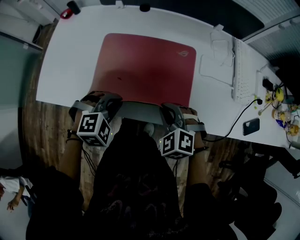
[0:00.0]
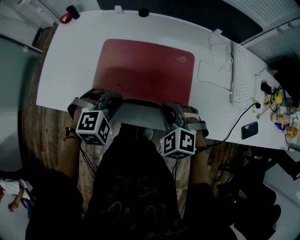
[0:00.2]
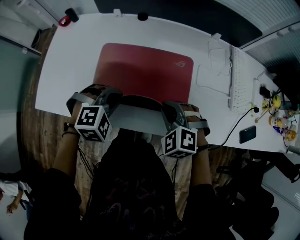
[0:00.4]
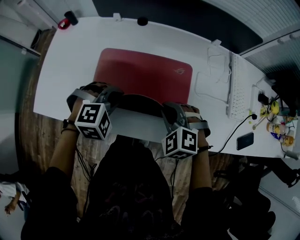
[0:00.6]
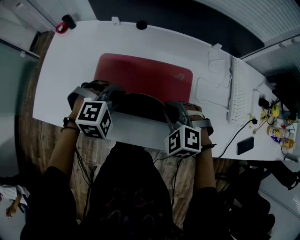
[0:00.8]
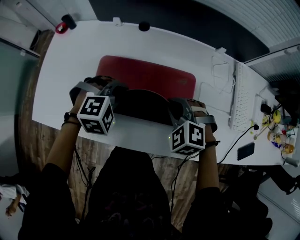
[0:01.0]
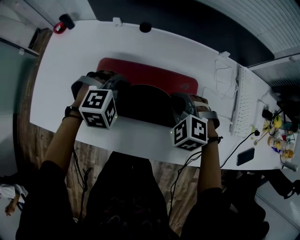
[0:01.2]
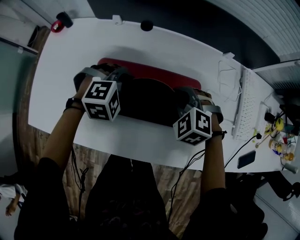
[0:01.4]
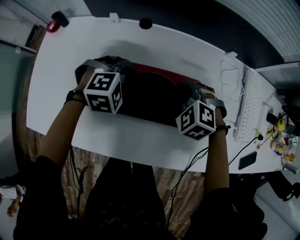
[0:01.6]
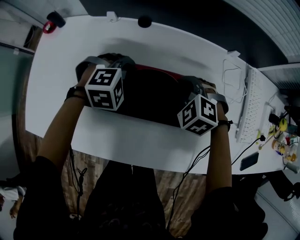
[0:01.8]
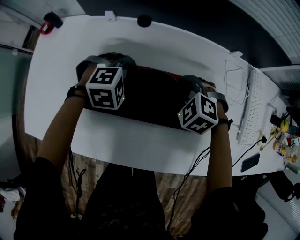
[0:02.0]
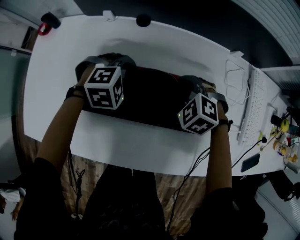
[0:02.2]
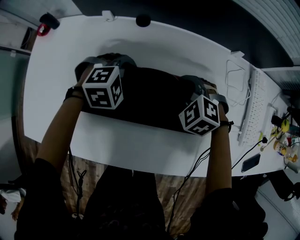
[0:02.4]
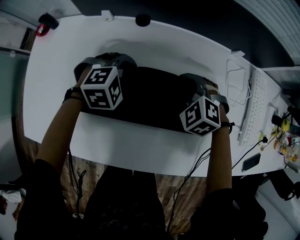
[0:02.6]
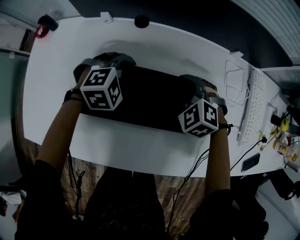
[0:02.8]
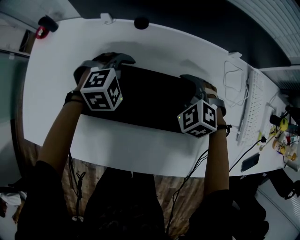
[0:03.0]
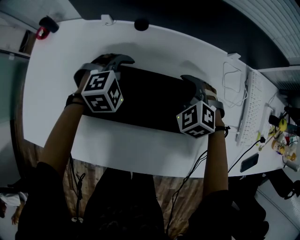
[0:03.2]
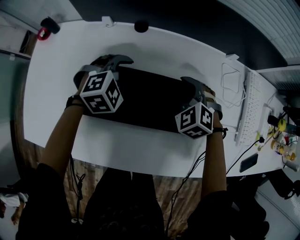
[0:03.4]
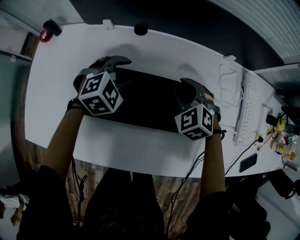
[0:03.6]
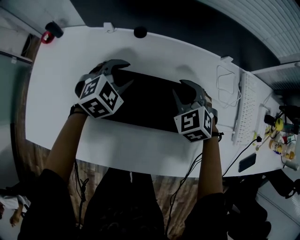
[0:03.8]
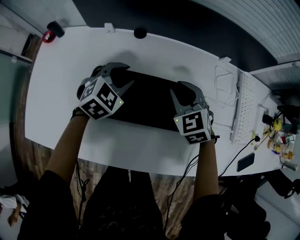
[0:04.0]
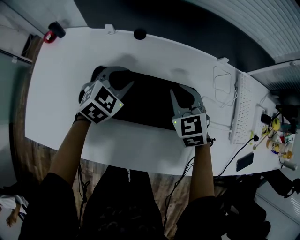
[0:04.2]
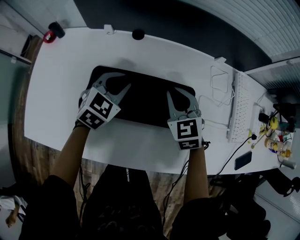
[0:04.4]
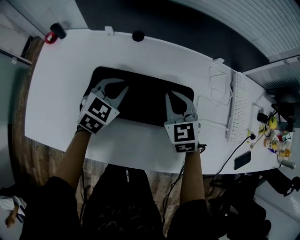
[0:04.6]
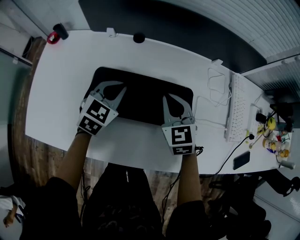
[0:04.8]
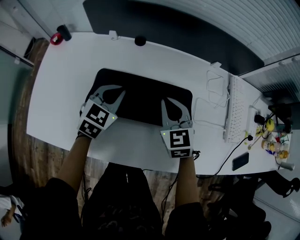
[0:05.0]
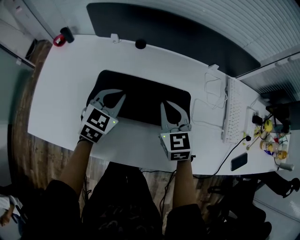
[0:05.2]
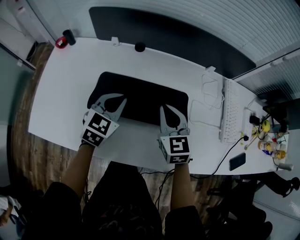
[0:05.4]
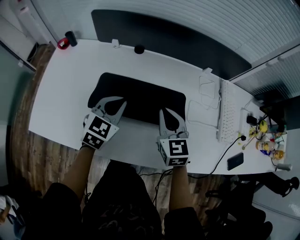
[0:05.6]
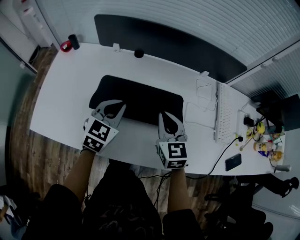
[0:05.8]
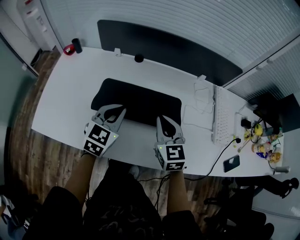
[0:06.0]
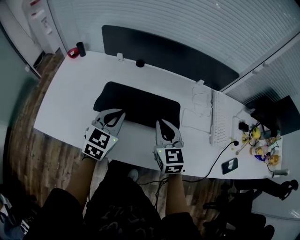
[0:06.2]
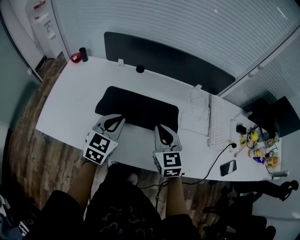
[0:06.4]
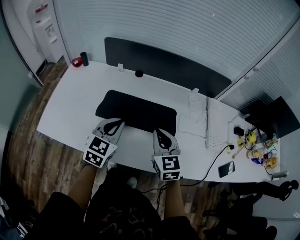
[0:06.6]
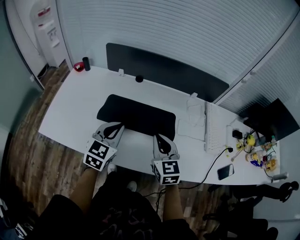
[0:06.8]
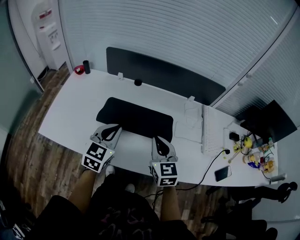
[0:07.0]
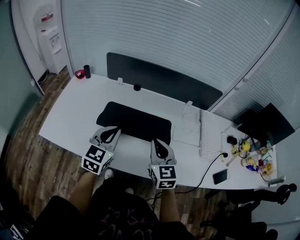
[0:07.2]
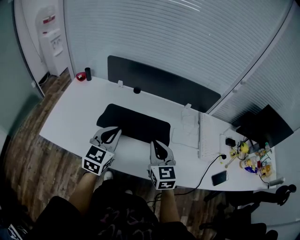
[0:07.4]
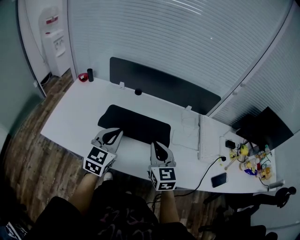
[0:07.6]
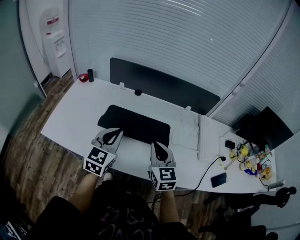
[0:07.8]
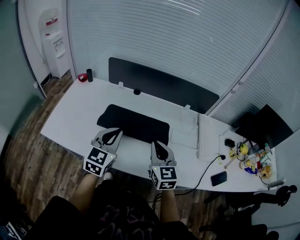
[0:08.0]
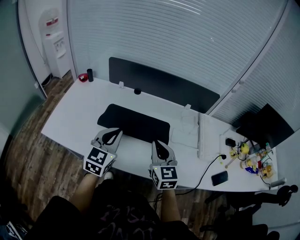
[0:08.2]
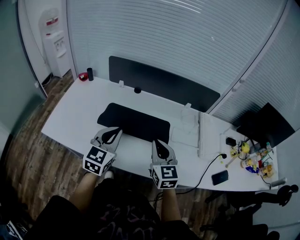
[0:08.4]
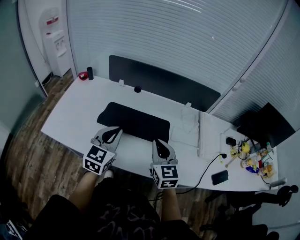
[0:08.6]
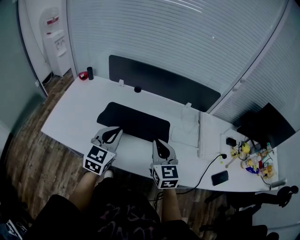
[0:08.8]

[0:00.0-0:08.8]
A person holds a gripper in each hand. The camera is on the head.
0:00.0 to 0:01.4: The grippers both shift forward by some 25 cm.
0:01.4 to 0:03.0: Both grippers travel together forward, about 10 cm. The left gripper opens its fingers.
0:03.0 to 0:04.4: The two grippers go roughly 10 cm upward. The right gripper turns by roughly 40 degrees, while the left gripper rotates some 40 degrees.
0:04.4 to 0:05.8: Both grippers travel together backward and upward, approximately 15 cm.
0:05.8 to 0:07.4: Both grippers travel together backward and upward, about 15 cm.
0:07.4 to 0:08.8: There are only small adjustments of the grippers.

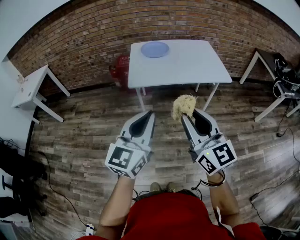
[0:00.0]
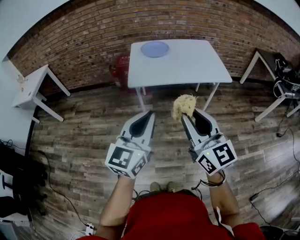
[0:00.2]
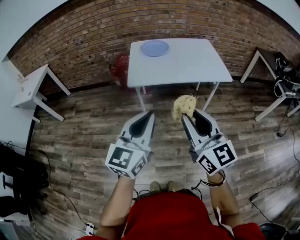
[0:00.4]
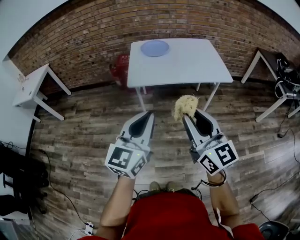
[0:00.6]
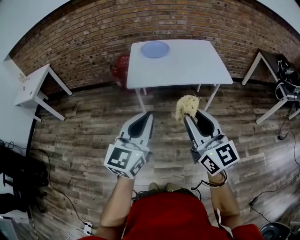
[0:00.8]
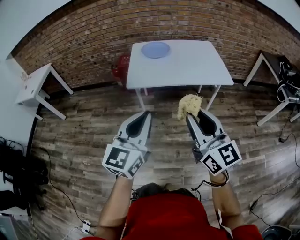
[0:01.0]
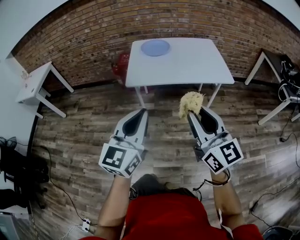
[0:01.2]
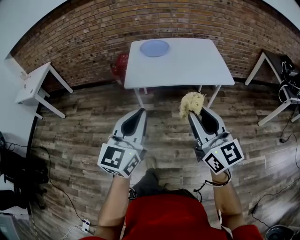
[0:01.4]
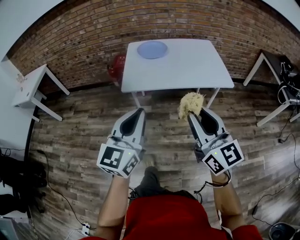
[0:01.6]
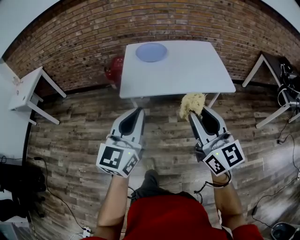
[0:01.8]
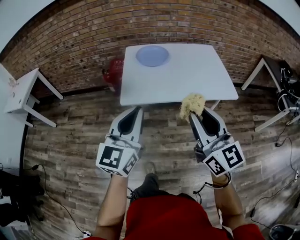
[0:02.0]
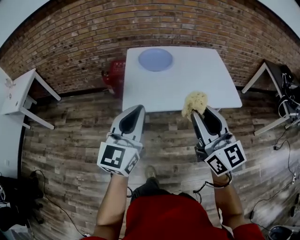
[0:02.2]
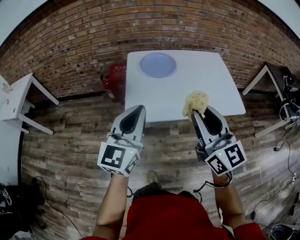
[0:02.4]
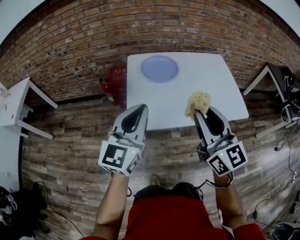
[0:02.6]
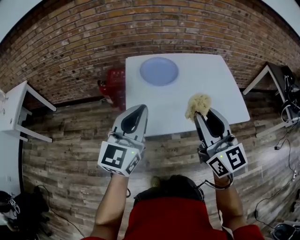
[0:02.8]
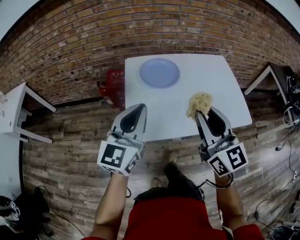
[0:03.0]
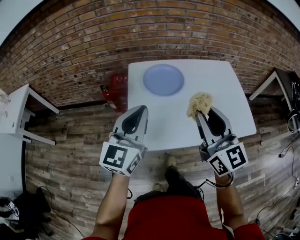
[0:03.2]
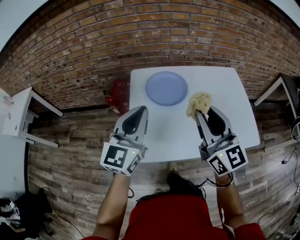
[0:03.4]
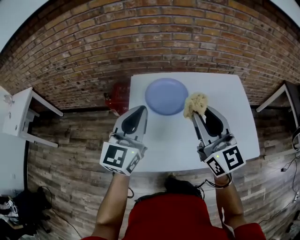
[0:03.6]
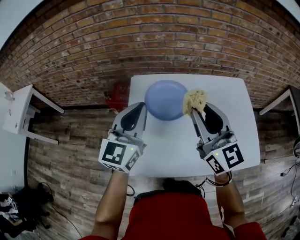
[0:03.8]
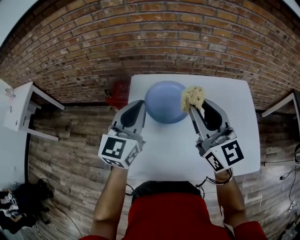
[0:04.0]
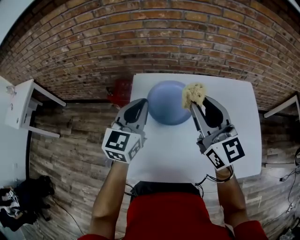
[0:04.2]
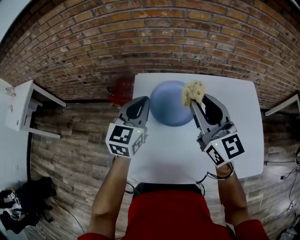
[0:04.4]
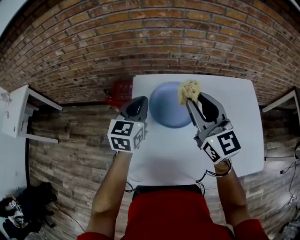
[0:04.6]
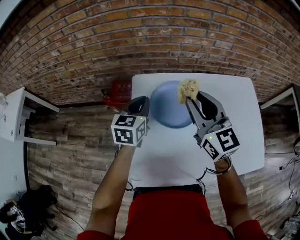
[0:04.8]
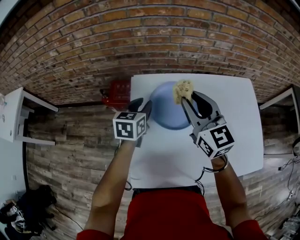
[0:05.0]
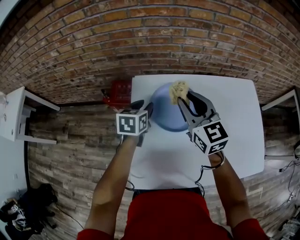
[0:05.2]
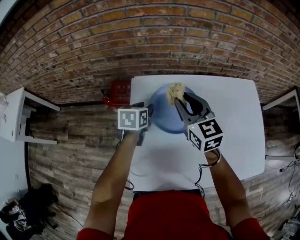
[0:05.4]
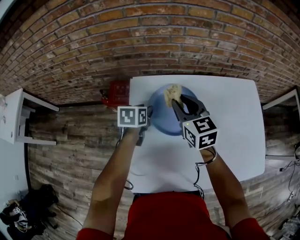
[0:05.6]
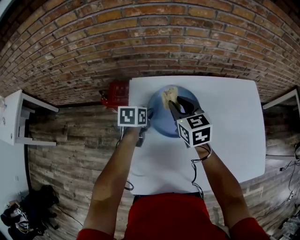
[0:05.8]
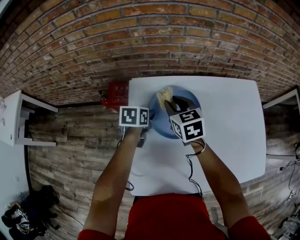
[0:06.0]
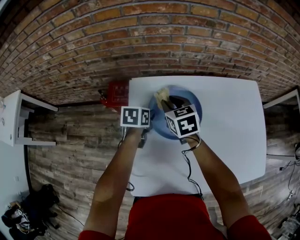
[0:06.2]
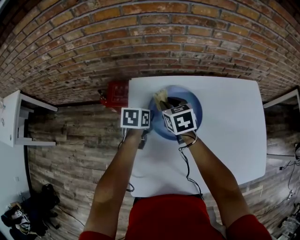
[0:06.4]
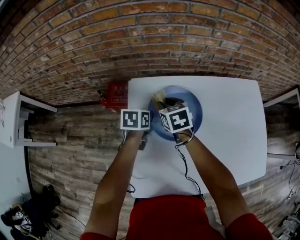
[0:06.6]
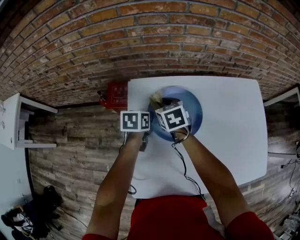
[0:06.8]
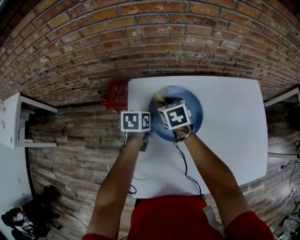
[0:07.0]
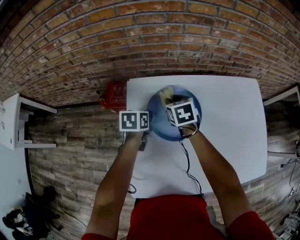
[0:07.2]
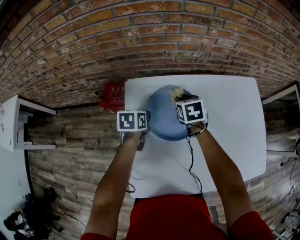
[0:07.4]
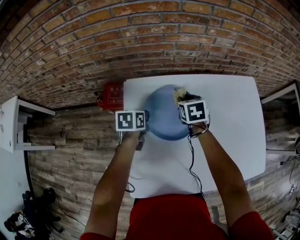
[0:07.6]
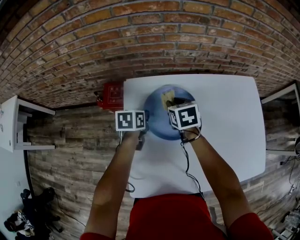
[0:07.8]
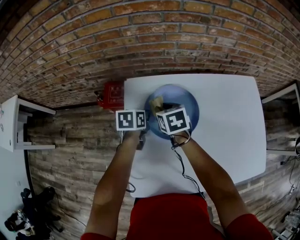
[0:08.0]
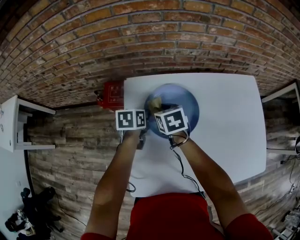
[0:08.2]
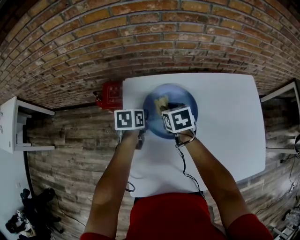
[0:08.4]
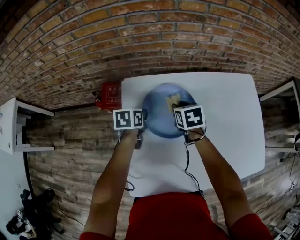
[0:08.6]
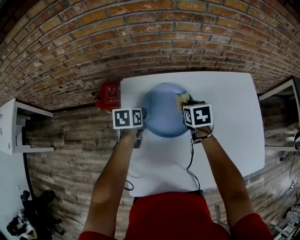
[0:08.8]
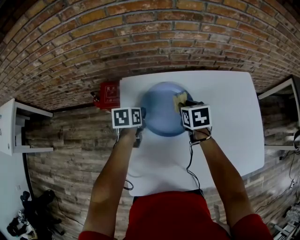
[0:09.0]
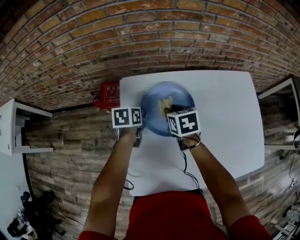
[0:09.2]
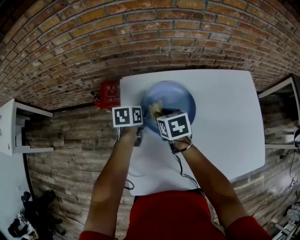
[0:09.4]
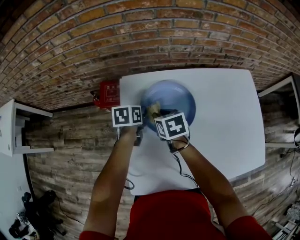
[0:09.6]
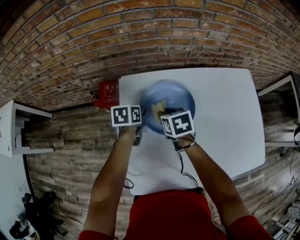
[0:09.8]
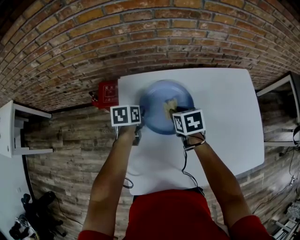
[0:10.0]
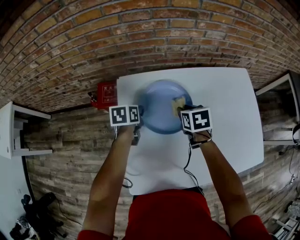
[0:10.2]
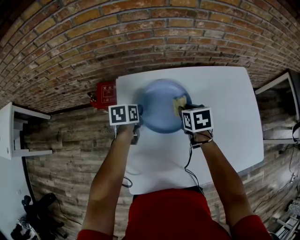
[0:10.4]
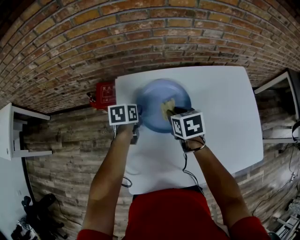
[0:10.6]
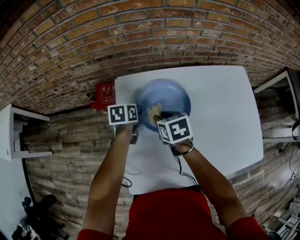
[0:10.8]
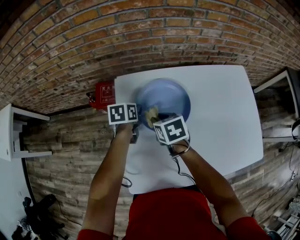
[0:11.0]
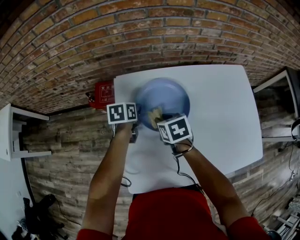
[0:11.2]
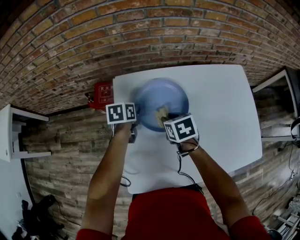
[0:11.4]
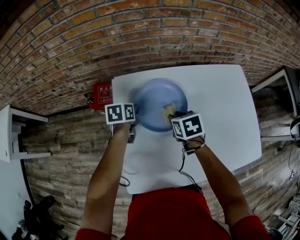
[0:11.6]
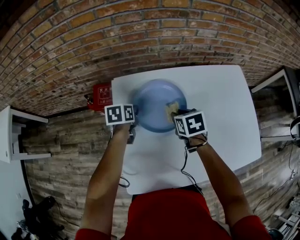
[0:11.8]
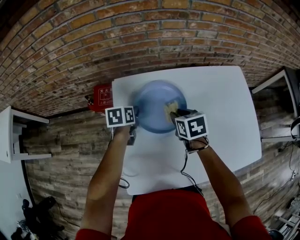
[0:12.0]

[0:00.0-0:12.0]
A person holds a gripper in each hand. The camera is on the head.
0:00.0 to 0:01.6: The right gripper shifts some 10 cm forward and to the right, while the left gripper is displaced forward by some 10 cm.
0:01.6 to 0:03.0: Both grippers move forward, some 40 cm.
0:03.0 to 0:04.4: The two grippers go some 30 cm forward.
0:04.4 to 0:06.0: The left gripper moves downward and forward, about 25 cm, tips its fingers downward by about 40 degrees, and opens its fingers. The right gripper goes roughly 25 cm downward, forward and to the left, and points its fingers about 40 degrees further downward.
0:06.0 to 0:07.6: The right gripper moves to the right and downward, approximately 10 cm, and rotates approximately 20 degrees; the left gripper closes its fingers.
0:07.6 to 0:09.0: The right gripper moves about 10 cm to the left and comes back.
0:09.0 to 0:10.4: The right gripper reaches some 10 cm to the left, then returns.
0:10.4 to 0:12.0: The right gripper goes to the left and returns, about 10 cm each way.

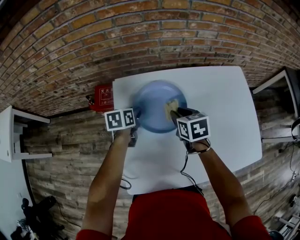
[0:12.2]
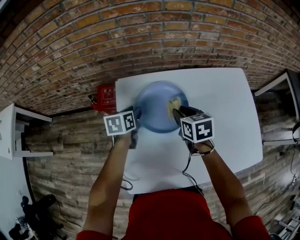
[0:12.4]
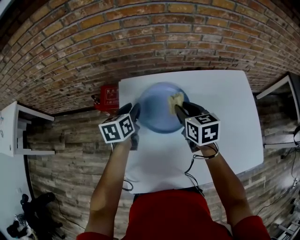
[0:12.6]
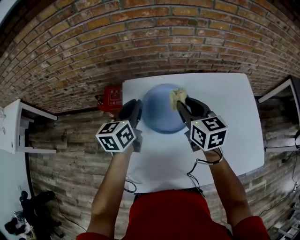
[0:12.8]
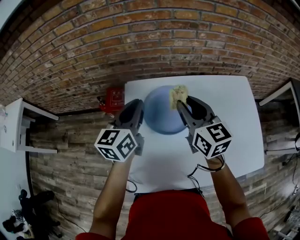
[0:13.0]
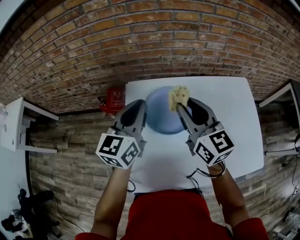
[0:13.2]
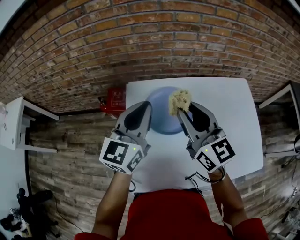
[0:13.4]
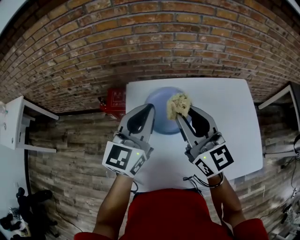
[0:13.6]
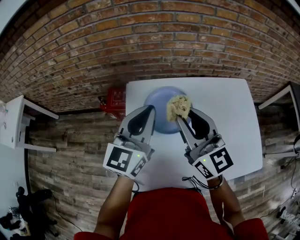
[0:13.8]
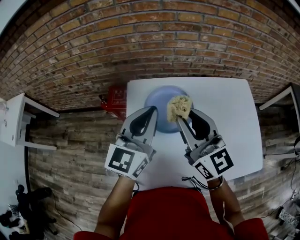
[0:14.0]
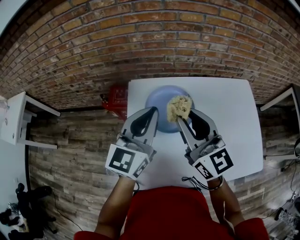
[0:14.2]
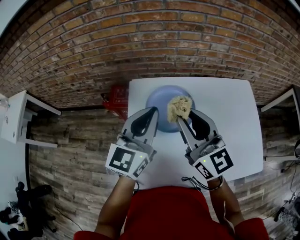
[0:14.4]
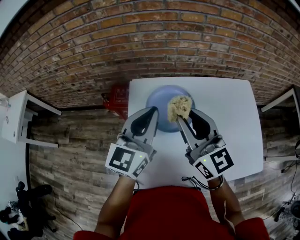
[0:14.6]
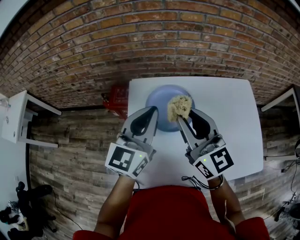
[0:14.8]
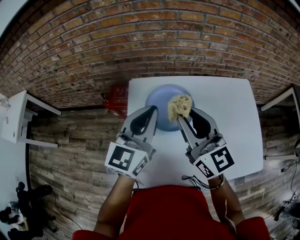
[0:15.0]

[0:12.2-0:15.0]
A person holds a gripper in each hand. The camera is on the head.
0:12.2 to 0:13.6: The two grippers go some 25 cm upward. The right gripper tips its fingers upward by roughly 50 degrees. The left gripper points its fingers approximately 50 degrees further upward, and closes up.
0:13.6 to 0:15.0: The grippers stay close to where they were, moving slightly.
